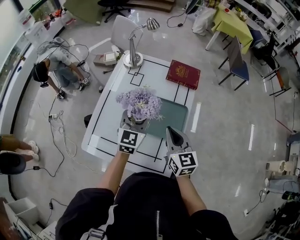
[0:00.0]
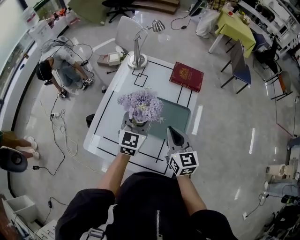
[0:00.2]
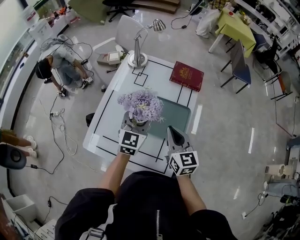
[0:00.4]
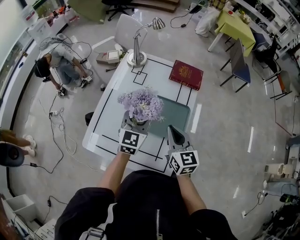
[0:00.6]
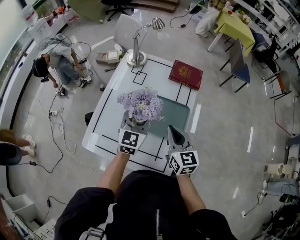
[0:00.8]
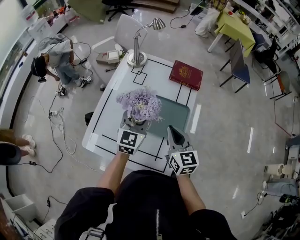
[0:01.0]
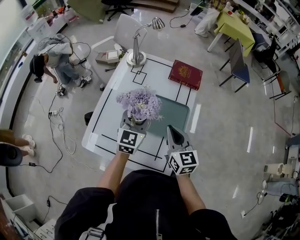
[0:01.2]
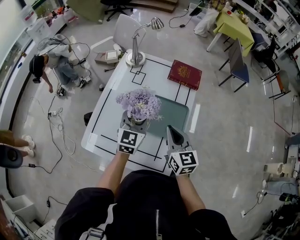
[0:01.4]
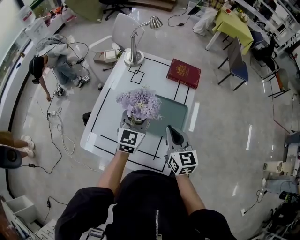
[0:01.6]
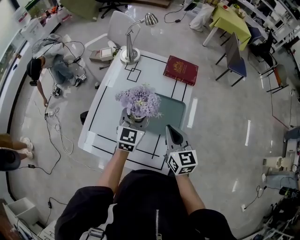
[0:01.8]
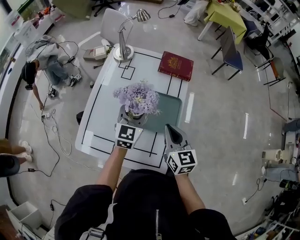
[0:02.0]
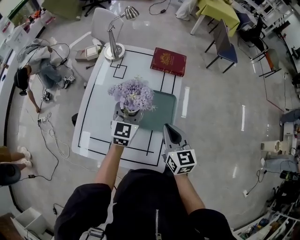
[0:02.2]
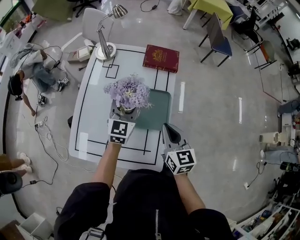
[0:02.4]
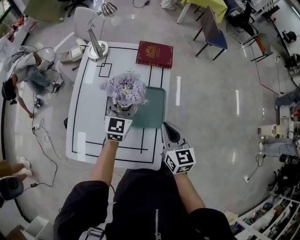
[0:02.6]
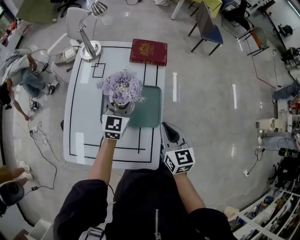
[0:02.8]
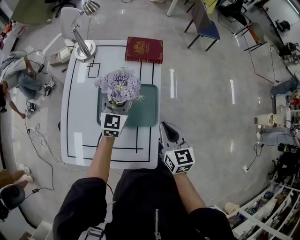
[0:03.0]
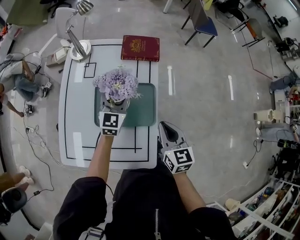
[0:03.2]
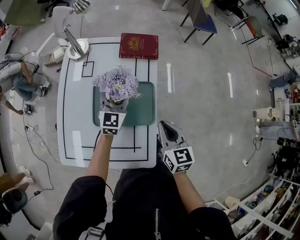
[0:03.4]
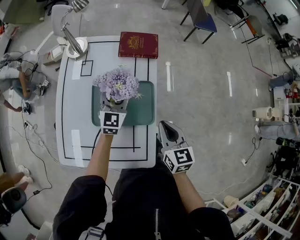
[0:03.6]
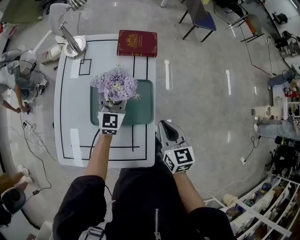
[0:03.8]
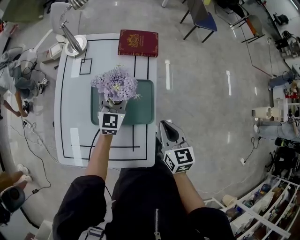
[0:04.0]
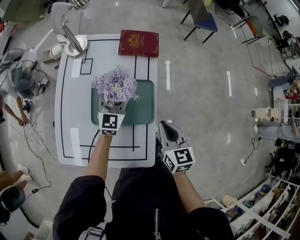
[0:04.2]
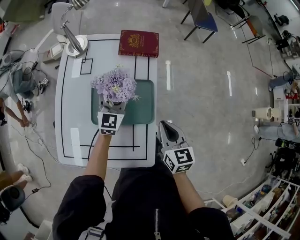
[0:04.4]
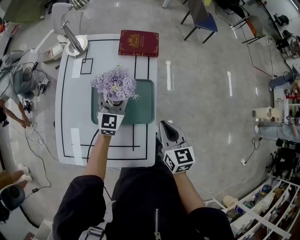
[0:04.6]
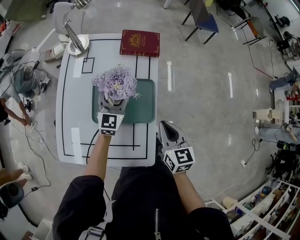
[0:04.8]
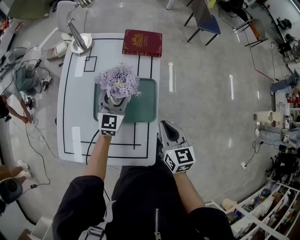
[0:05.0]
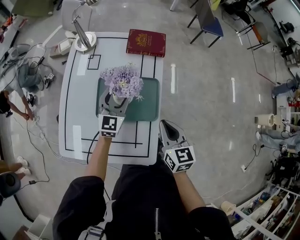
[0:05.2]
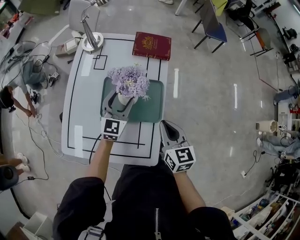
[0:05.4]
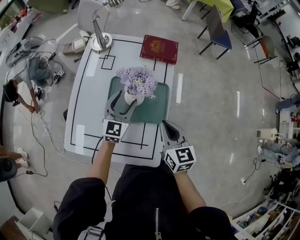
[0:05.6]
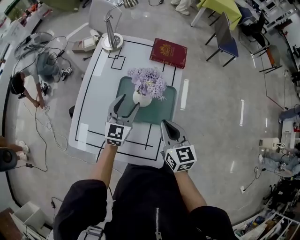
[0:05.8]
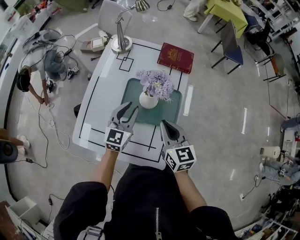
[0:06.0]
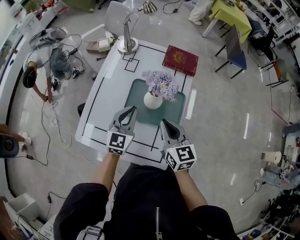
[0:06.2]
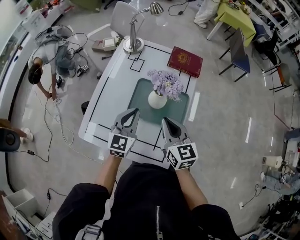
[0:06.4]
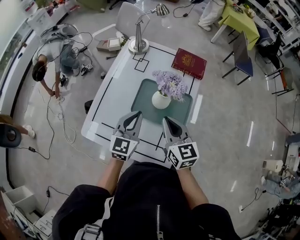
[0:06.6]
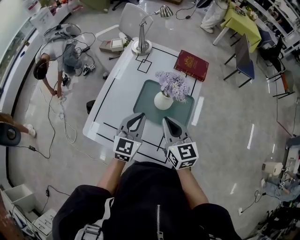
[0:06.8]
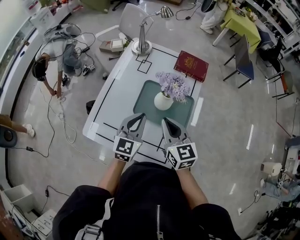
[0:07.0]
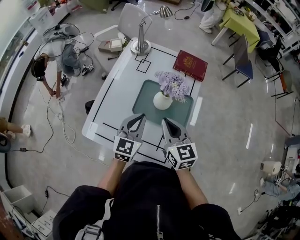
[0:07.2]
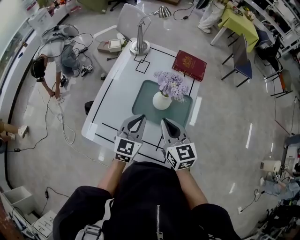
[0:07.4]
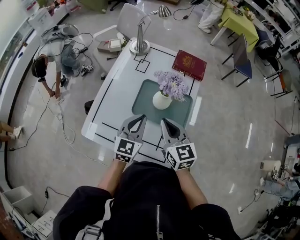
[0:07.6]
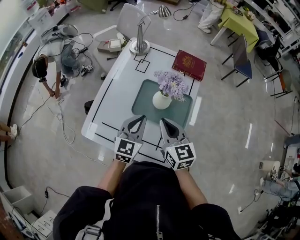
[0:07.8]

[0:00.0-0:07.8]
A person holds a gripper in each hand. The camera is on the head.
0:00.0 to 0:01.6: The grippers make only small movements.
0:01.6 to 0:03.2: The right gripper heads to the right, covering approximately 10 cm. Meanwhile the left gripper travels forward, to the right and downward by approximately 15 cm.
0:03.2 to 0:04.6: The grippers move only a little.
0:04.6 to 0:06.2: The left gripper shifts about 15 cm backward and to the left, and closes up. The right gripper moves to the left, roughly 15 cm, and turns by about 20 degrees.
0:06.2 to 0:07.8: The left gripper goes about 5 cm backward.

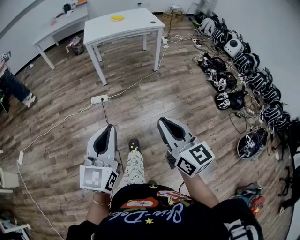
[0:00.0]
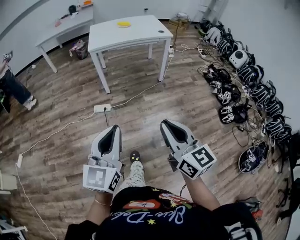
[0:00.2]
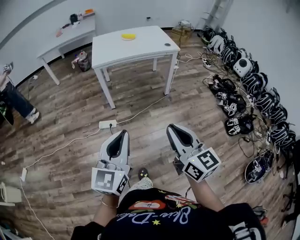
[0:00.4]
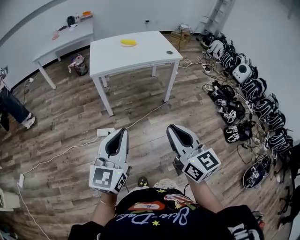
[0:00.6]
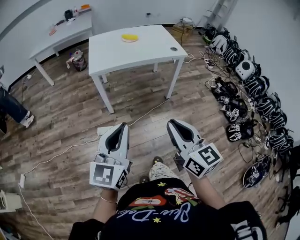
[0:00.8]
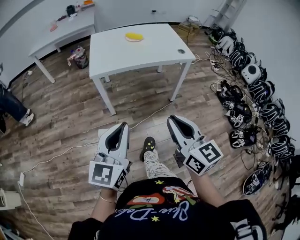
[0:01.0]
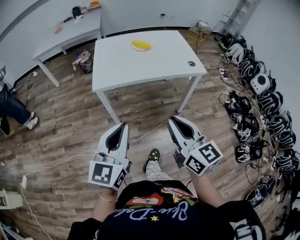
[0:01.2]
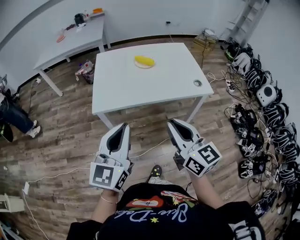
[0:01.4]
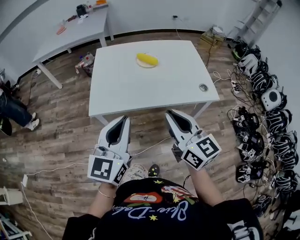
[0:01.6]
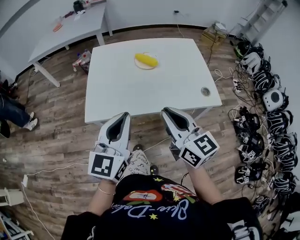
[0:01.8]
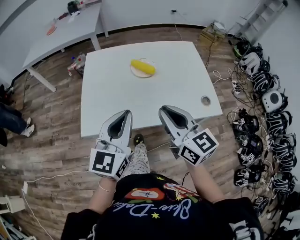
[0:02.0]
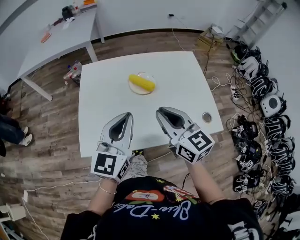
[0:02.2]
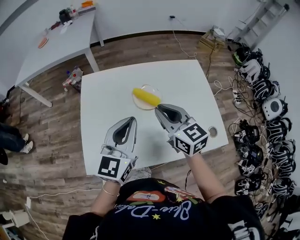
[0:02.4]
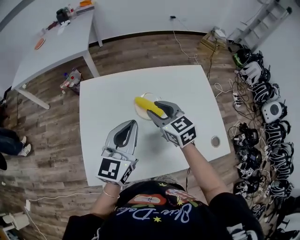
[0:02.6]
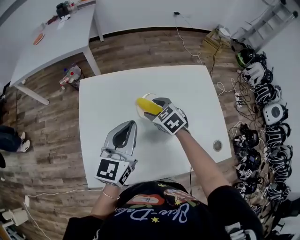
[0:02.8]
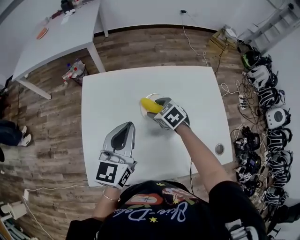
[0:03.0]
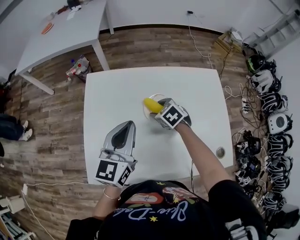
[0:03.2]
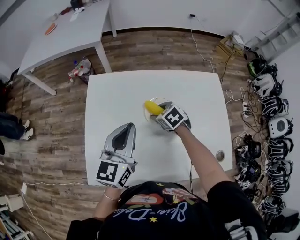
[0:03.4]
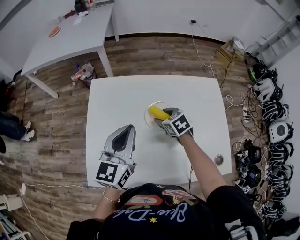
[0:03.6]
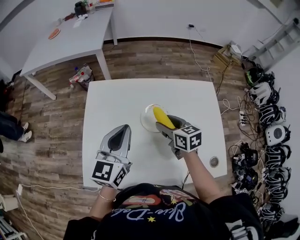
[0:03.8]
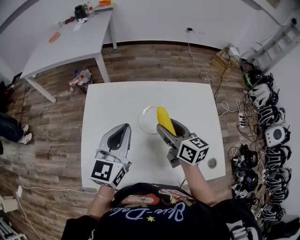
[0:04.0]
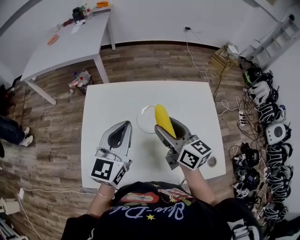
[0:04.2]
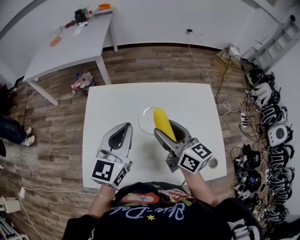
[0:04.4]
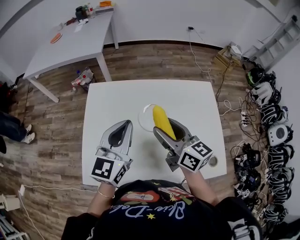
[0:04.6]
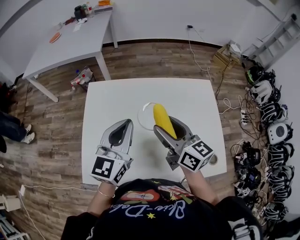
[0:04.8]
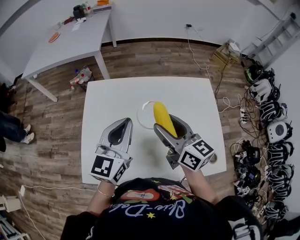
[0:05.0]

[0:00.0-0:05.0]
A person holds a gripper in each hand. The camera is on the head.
0:00.0 to 0:01.6: Both grippers are carried forward, approximately 80 cm.
0:01.6 to 0:03.4: Both grippers are carried forward, roughly 50 cm. The right gripper shifts approximately 25 cm downward, tilts its fingers about 60 degrees downward, and opens its fingers.
0:03.4 to 0:05.0: The left gripper moves some 5 cm. Meanwhile the right gripper travels upward and backward by about 25 cm, and angles its fingers upward, by some 50 degrees.

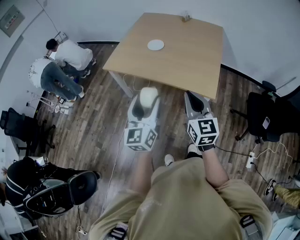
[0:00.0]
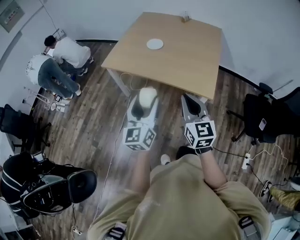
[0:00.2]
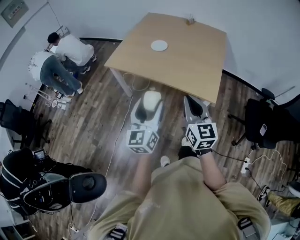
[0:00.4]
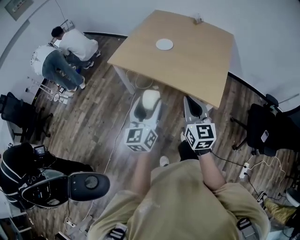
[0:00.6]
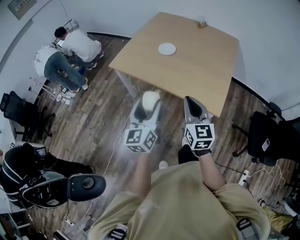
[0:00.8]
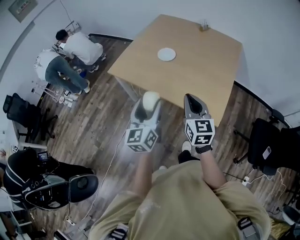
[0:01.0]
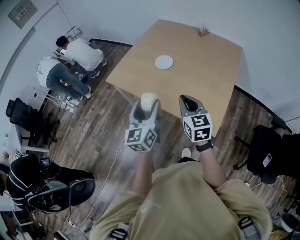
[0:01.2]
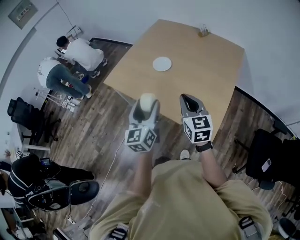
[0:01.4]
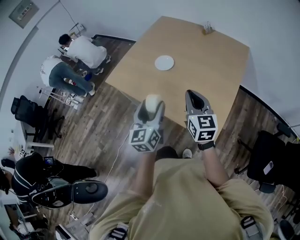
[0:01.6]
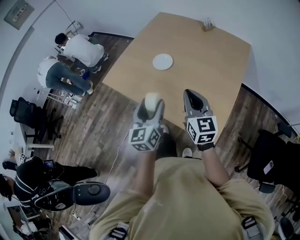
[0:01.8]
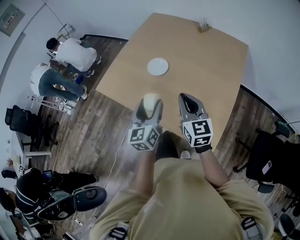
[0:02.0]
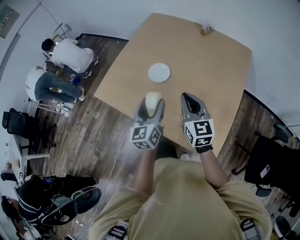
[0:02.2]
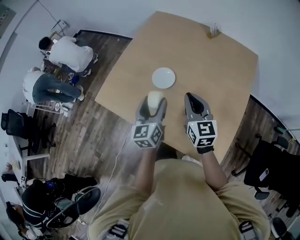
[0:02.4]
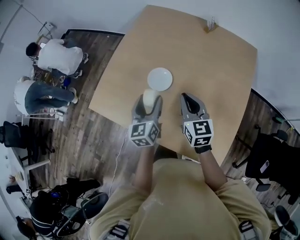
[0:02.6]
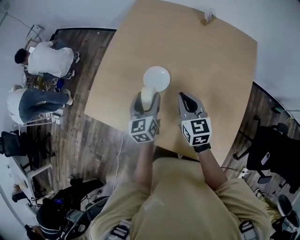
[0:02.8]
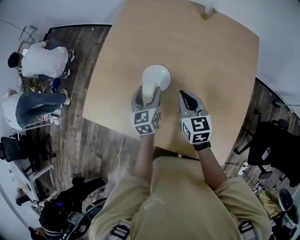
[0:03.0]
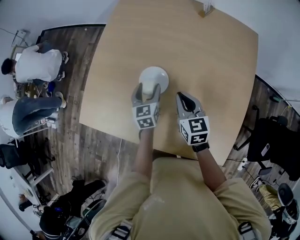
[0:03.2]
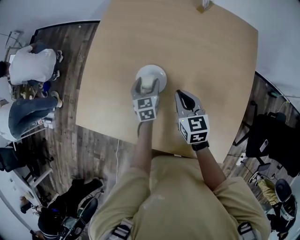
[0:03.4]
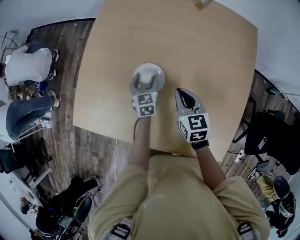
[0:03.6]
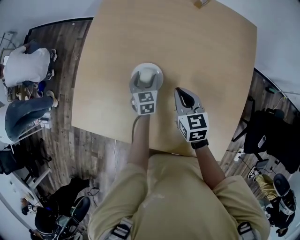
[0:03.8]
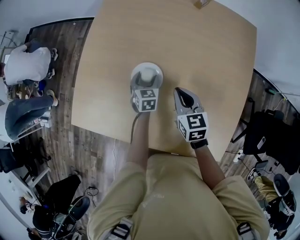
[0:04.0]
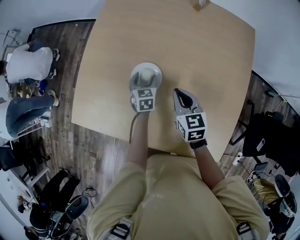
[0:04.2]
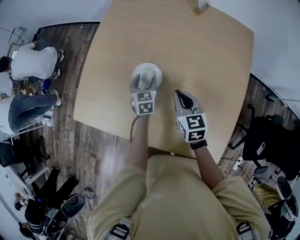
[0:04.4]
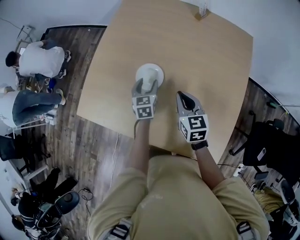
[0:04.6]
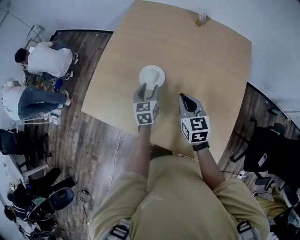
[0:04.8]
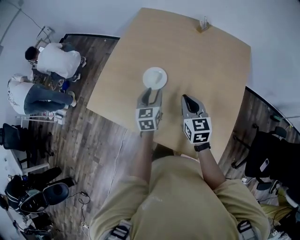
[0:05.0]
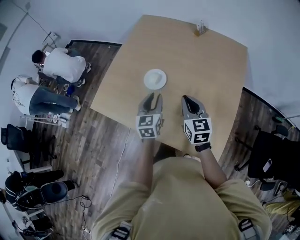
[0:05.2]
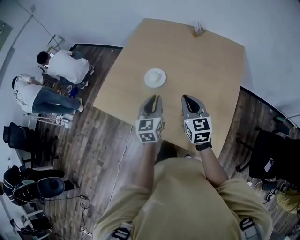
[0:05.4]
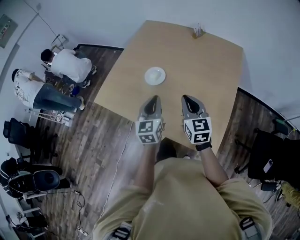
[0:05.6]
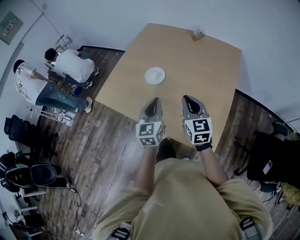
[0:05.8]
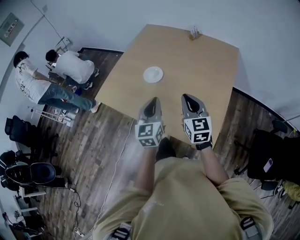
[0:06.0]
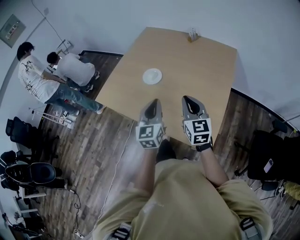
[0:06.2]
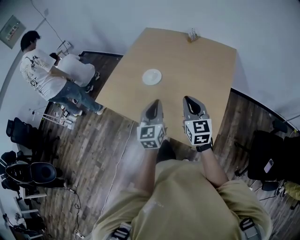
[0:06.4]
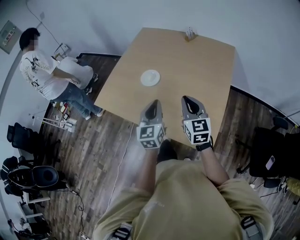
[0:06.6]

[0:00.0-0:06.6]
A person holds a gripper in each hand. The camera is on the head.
0:00.0 to 0:01.6: Both grippers move forward, roughly 30 cm.
0:01.6 to 0:03.2: The two grippers go about 50 cm forward and downward. The right gripper swivels approximately 20 degrees, while the left gripper swivels about 30 degrees.
0:03.2 to 0:05.0: The right gripper is displaced backward, upward and to the right by about 15 cm; the left gripper heads backward and upward, covering roughly 15 cm, and closes.
0:05.0 to 0:06.6: The left gripper travels backward and upward by approximately 25 cm, and closes its fingers. The right gripper goes about 20 cm backward and to the right.

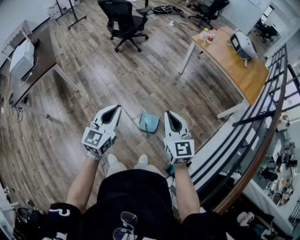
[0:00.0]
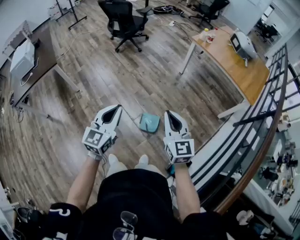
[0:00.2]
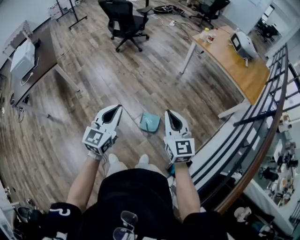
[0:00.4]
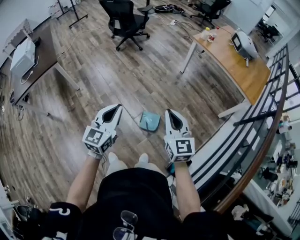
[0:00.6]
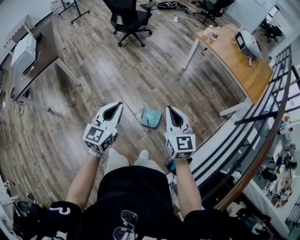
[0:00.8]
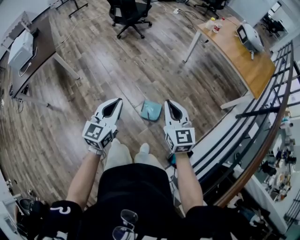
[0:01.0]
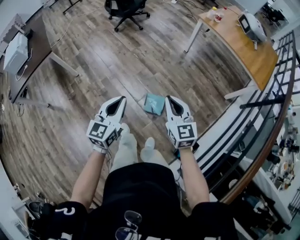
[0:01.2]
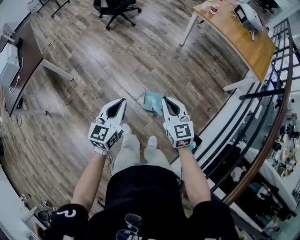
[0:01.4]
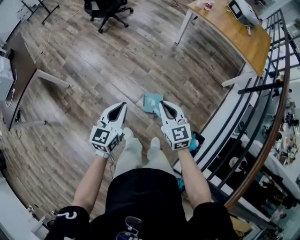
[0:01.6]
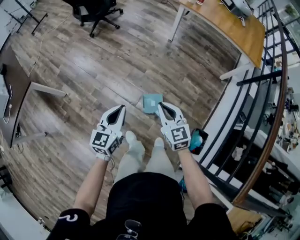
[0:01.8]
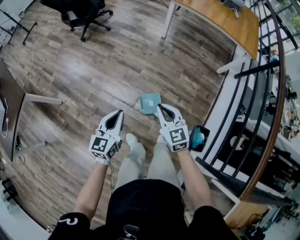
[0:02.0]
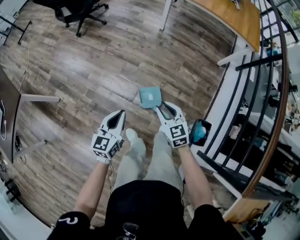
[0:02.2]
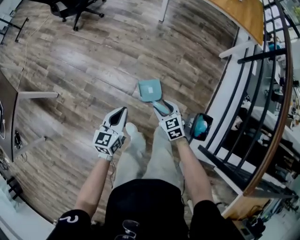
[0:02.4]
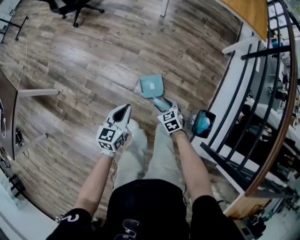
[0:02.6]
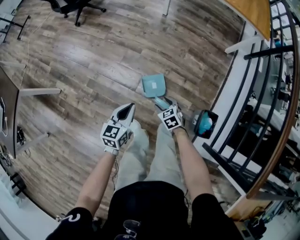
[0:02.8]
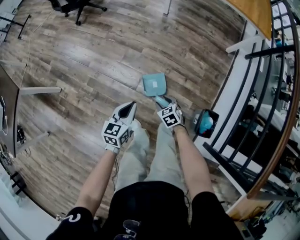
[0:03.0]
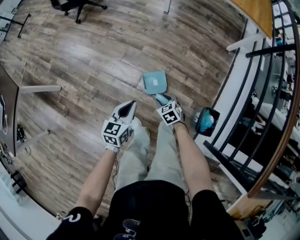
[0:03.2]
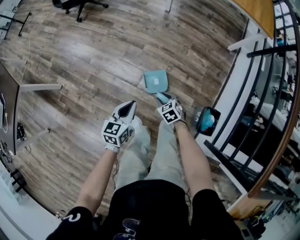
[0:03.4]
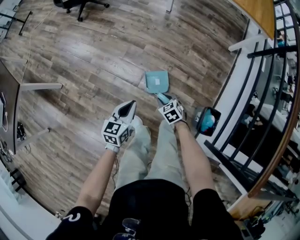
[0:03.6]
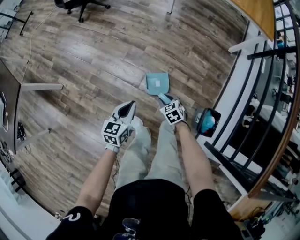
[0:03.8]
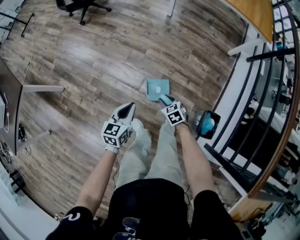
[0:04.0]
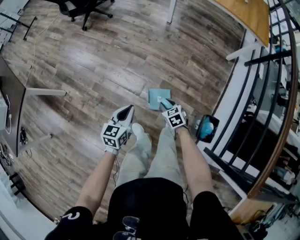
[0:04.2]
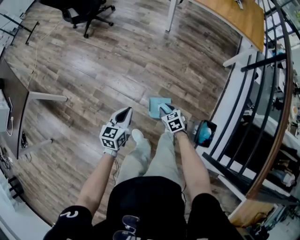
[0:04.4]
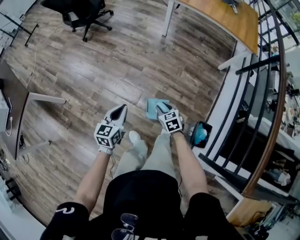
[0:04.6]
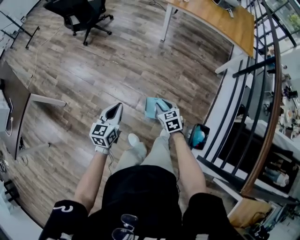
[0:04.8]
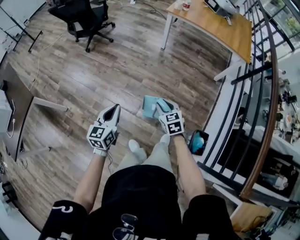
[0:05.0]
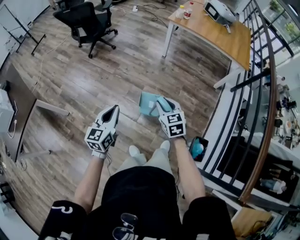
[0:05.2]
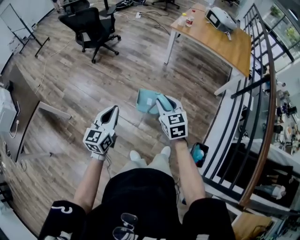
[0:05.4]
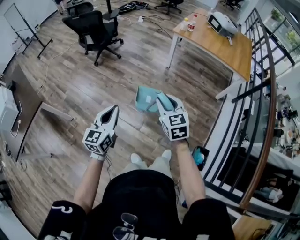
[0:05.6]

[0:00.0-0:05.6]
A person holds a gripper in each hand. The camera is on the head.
0:00.0 to 0:01.4: The left gripper travels downward and forward by approximately 15 cm; the right gripper is displaced downward, forward and to the left by about 15 cm.
0:01.4 to 0:02.8: The left gripper heads downward, covering some 25 cm, and changes its angle by approximately 20 degrees, while the right gripper is displaced downward by some 40 cm, angles its fingers downward, by some 40 degrees, and opens its fingers.
0:02.8 to 0:04.2: The right gripper closes its fingers.
0:04.2 to 0:05.6: The right gripper shifts about 40 cm upward, and tilts its fingers about 30 degrees upward. Meanwhile the left gripper travels upward by about 30 cm, and swivels about 20 degrees.
